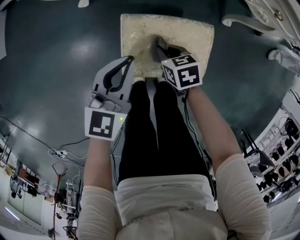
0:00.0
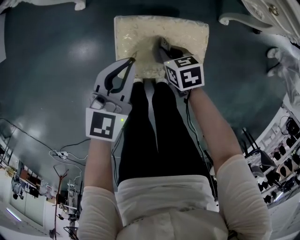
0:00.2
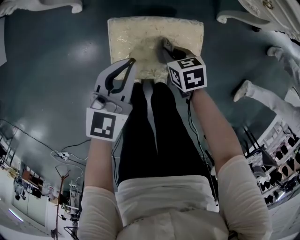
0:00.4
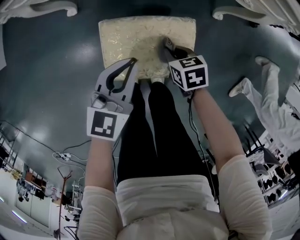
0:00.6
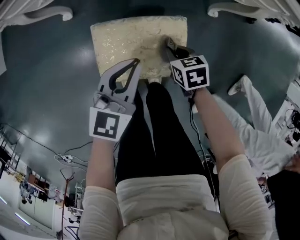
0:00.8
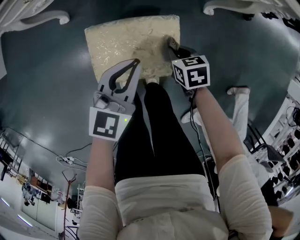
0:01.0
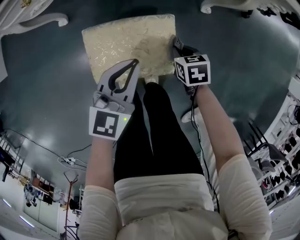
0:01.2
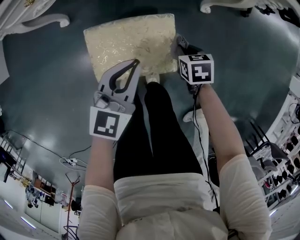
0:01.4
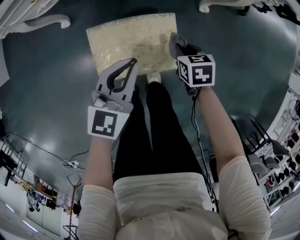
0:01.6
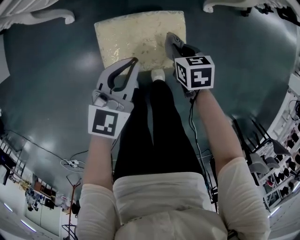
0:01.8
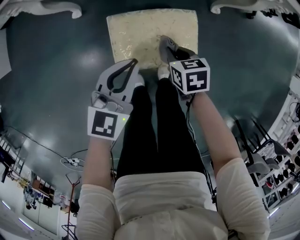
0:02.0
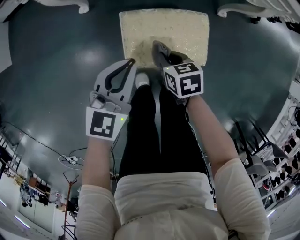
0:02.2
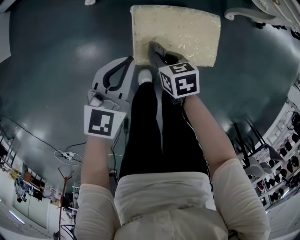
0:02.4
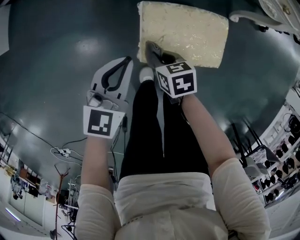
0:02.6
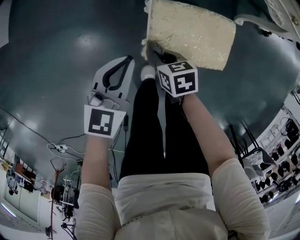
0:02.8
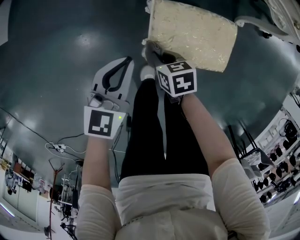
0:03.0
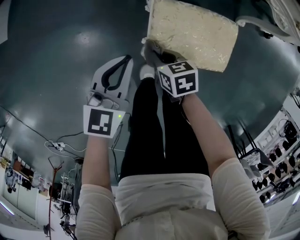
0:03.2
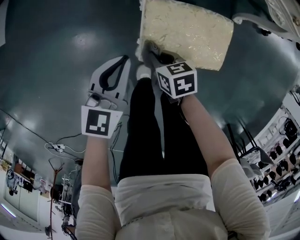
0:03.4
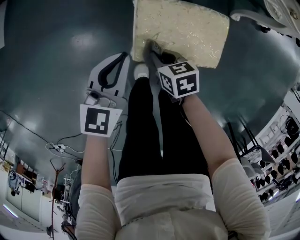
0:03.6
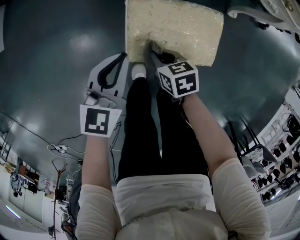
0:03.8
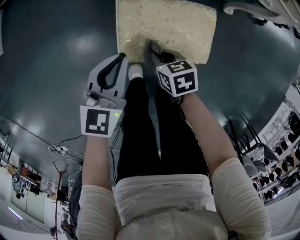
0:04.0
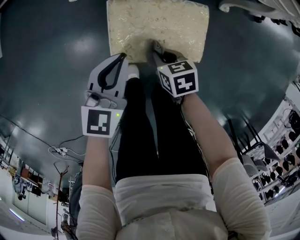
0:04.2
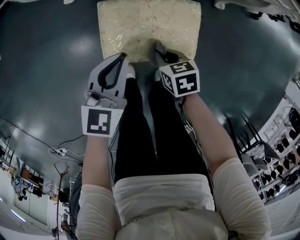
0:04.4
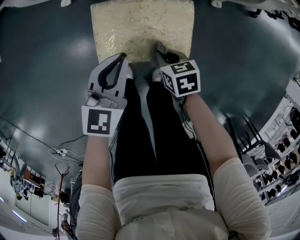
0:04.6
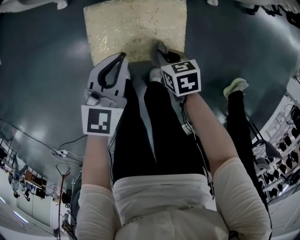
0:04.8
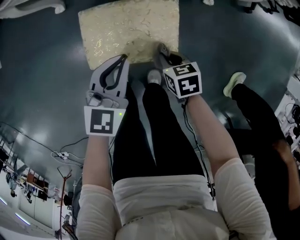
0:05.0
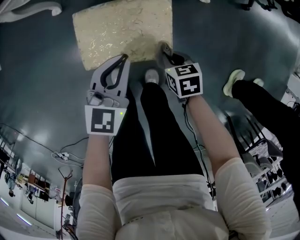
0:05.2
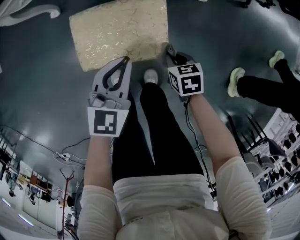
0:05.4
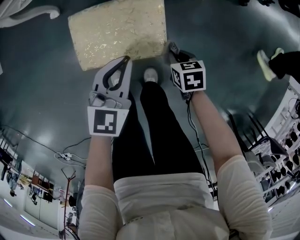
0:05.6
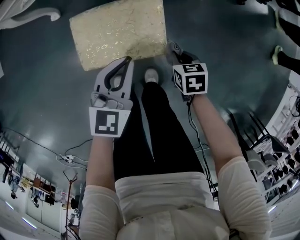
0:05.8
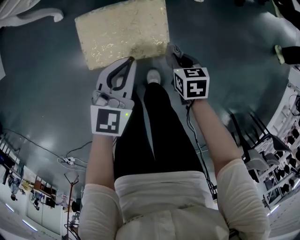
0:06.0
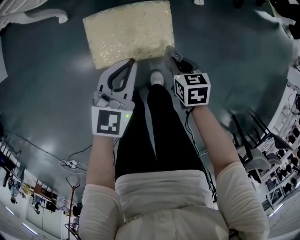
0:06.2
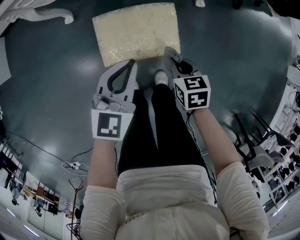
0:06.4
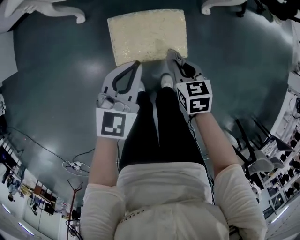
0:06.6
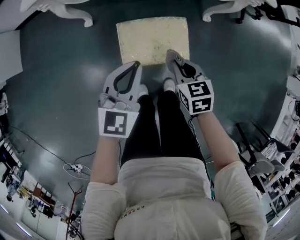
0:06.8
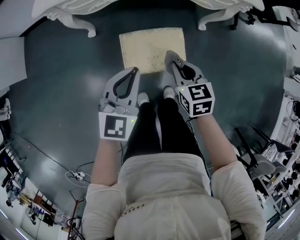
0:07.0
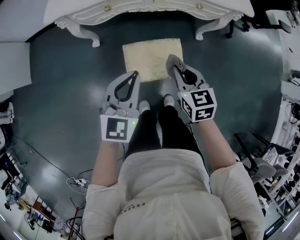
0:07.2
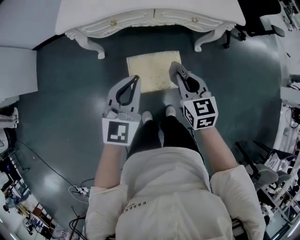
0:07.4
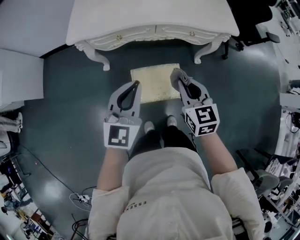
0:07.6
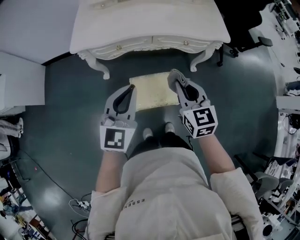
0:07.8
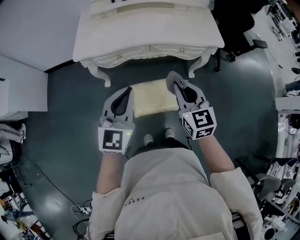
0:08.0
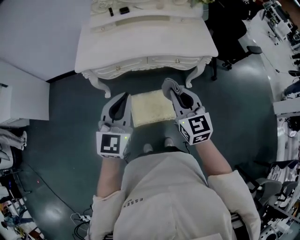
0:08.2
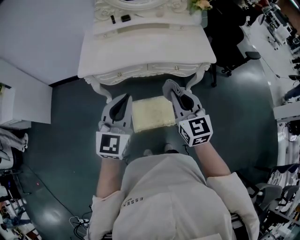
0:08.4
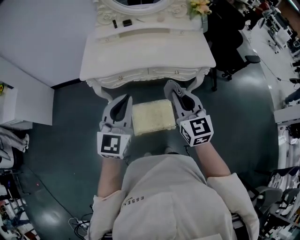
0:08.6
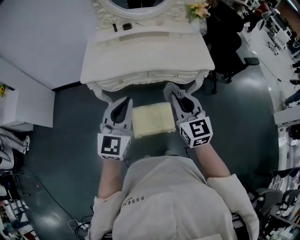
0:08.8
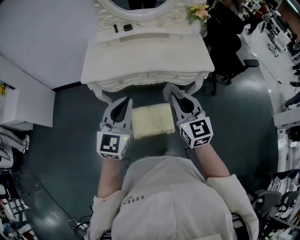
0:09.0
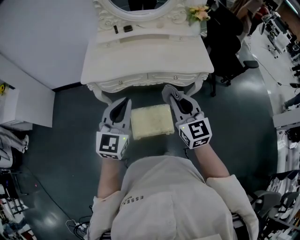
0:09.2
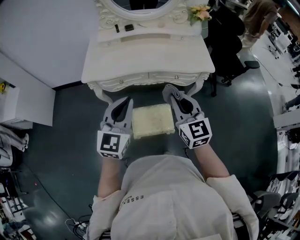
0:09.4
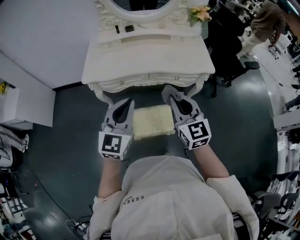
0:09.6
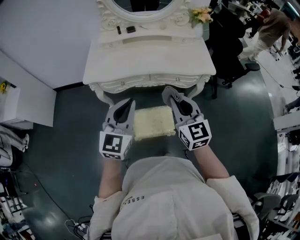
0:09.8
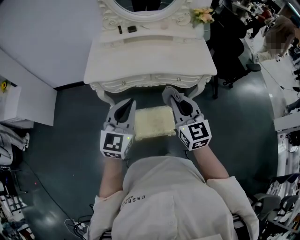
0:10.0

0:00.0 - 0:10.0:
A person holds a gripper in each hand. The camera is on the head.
0:00.0 - 0:01.4: Both grippers travel together to the right, about 20 cm.
0:01.4 - 0:02.8: Both grippers travel together to the left, approximately 30 cm.
0:02.8 - 0:04.2: Both grippers move to the right, approximately 10 cm.
0:04.2 - 0:05.8: The two grippers go roughly 20 cm to the right.
0:05.8 - 0:07.2: Both grippers travel together upward and to the left, about 30 cm. The right gripper changes its angle by about 30 degrees.
0:07.2 - 0:08.6: Both grippers move upward, about 30 cm. The right gripper turns by some 30 degrees.
0:08.6 - 0:10.0: There are only small adjustments of the grippers.

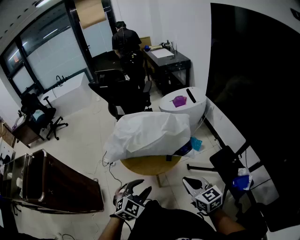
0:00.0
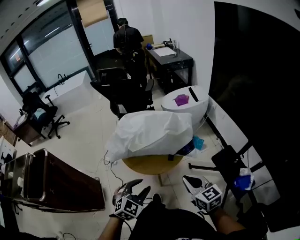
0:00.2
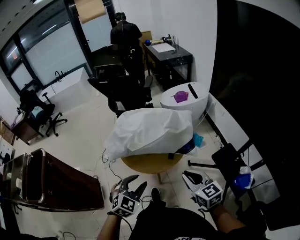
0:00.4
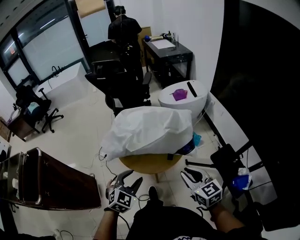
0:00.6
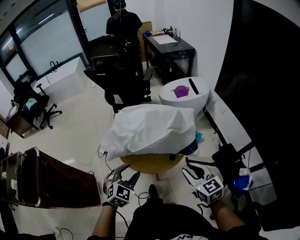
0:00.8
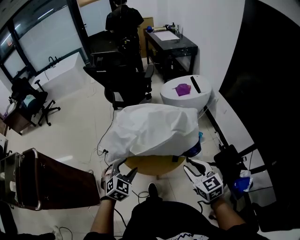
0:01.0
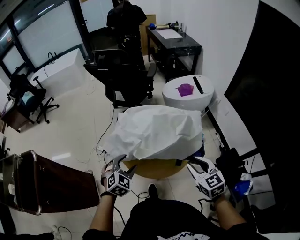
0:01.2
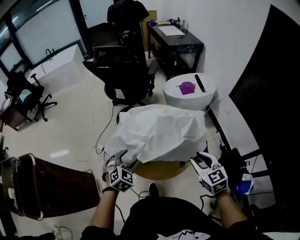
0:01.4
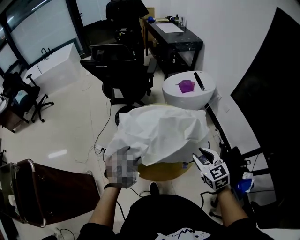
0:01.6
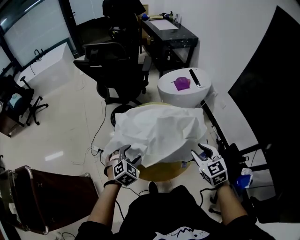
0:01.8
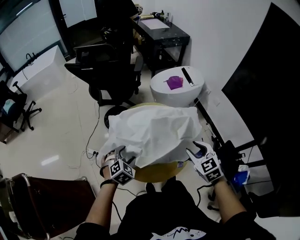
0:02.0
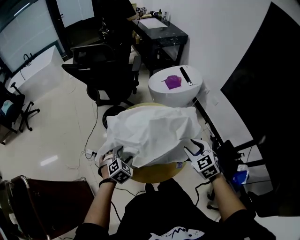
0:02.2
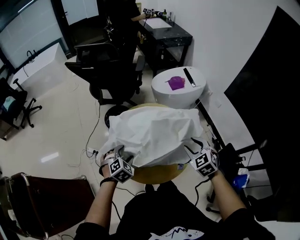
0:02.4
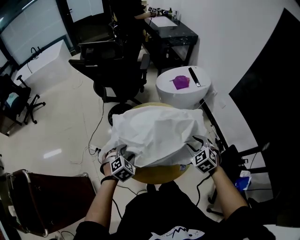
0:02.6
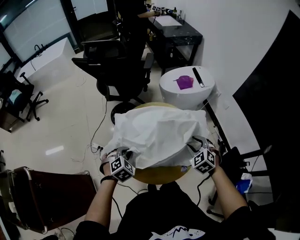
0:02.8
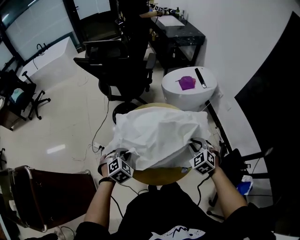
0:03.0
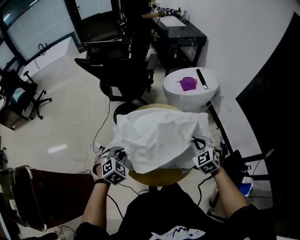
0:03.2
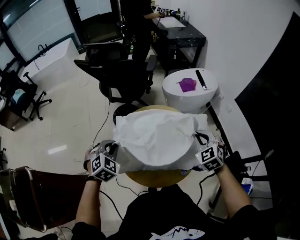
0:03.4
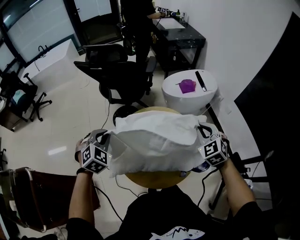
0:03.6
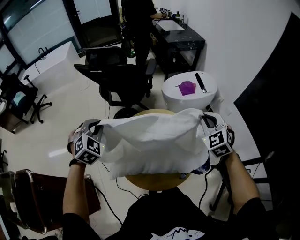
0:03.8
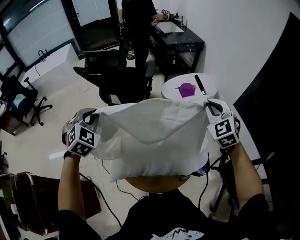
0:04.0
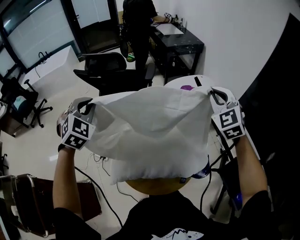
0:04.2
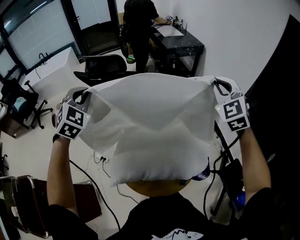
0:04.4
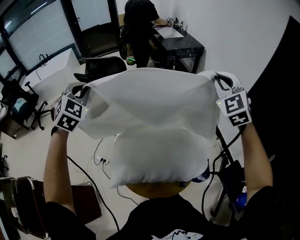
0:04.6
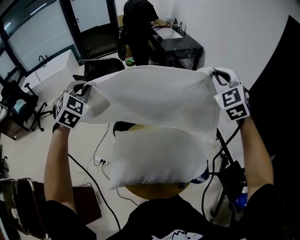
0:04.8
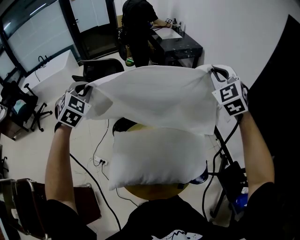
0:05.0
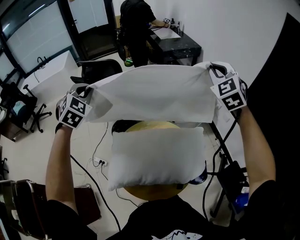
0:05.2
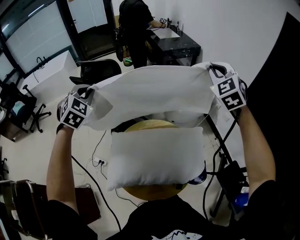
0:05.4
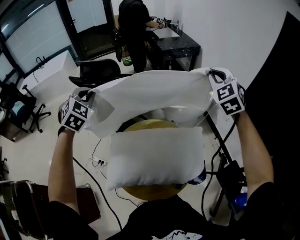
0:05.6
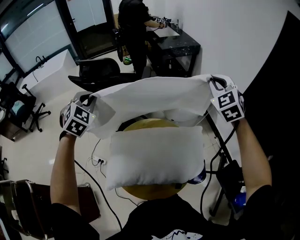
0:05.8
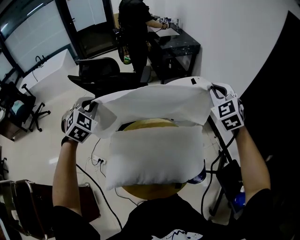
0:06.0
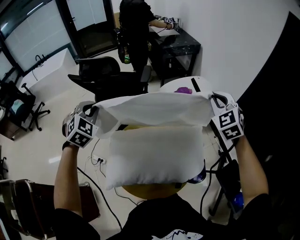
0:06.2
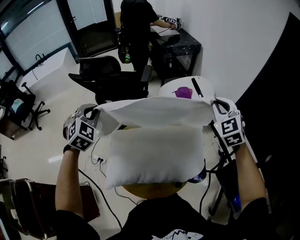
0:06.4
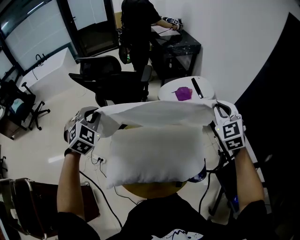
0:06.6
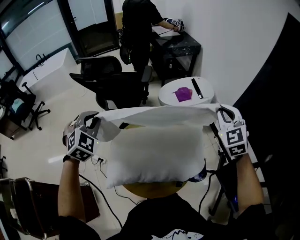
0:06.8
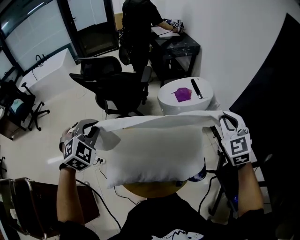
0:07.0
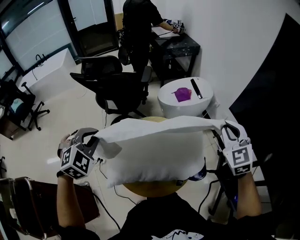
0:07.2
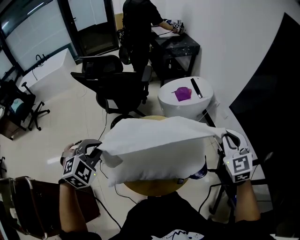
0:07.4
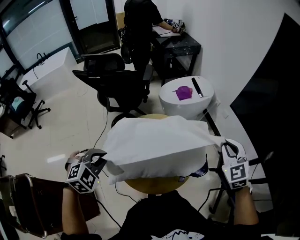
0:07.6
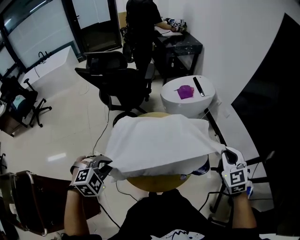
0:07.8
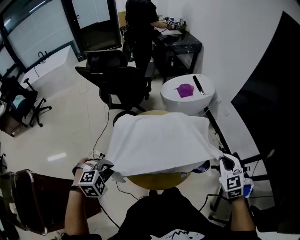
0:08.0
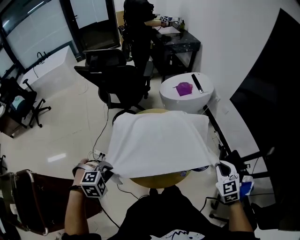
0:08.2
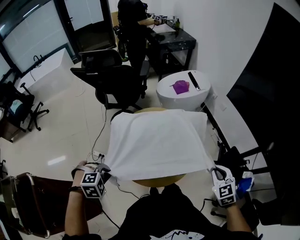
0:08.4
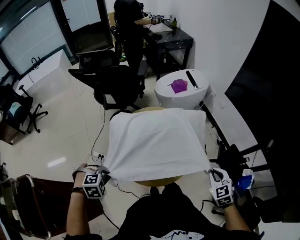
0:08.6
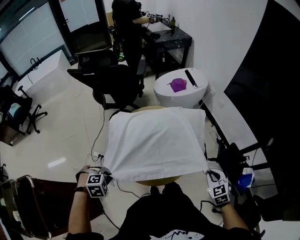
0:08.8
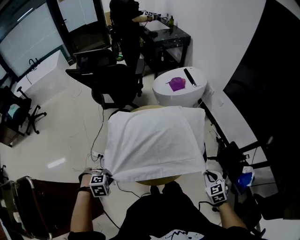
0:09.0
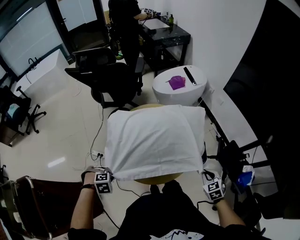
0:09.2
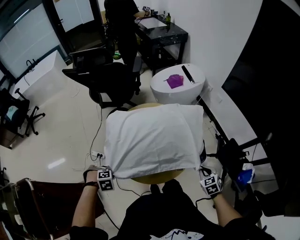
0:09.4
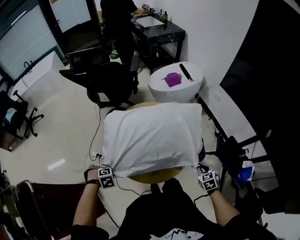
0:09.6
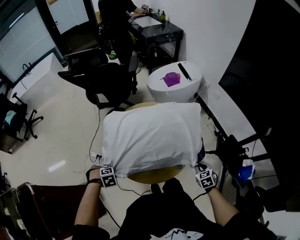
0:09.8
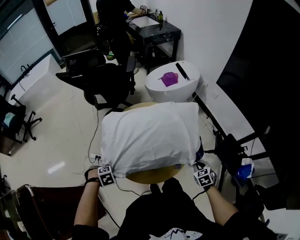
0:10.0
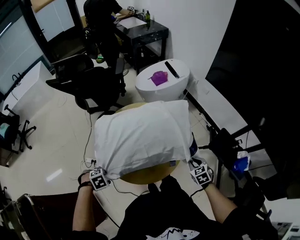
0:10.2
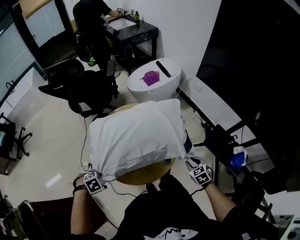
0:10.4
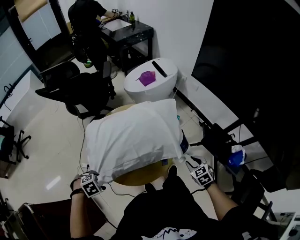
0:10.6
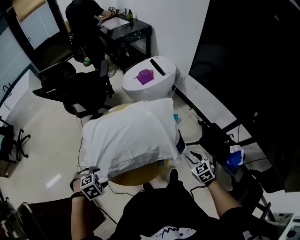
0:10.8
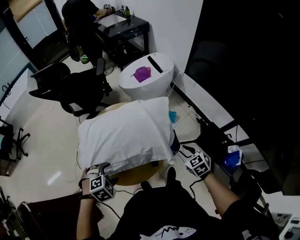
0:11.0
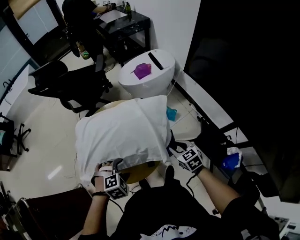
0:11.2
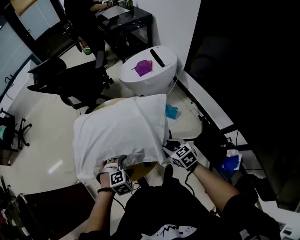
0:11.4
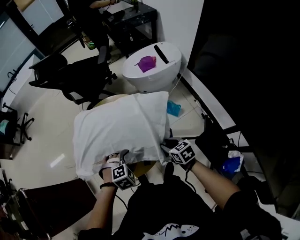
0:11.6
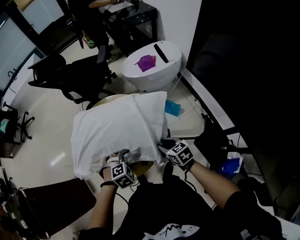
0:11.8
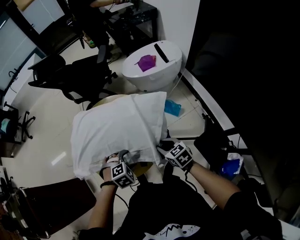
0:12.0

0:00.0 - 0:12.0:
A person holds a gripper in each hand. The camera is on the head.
0:00.0 - 0:01.6: The left gripper is displaced forward and to the left by some 35 cm, while the right gripper is displaced forward by approximately 25 cm, changes its angle by roughly 20 degrees, and opens up.
0:01.6 - 0:03.0: The left gripper ends up about 5 cm from where it was, and closes; the right gripper moves forward and downward, some 15 cm, and turns by some 30 degrees.
0:03.0 - 0:04.4: Both grippers move upward and forward, approximately 40 cm. The left gripper tilts its fingers roughly 30 degrees upward; the right gripper tilts its fingers roughly 30 degrees upward.
0:04.4 - 0:06.0: The two grippers go some 5 cm downward.
0:06.0 - 0:07.6: The left gripper is displaced backward and downward by approximately 25 cm, and changes its angle by about 30 degrees. Meanwhile the right gripper heads backward, covering about 25 cm.
0:07.6 - 0:09.0: The two grippers go about 20 cm downward. The right gripper rotates some 30 degrees. The left gripper tips its fingers downward by roughly 30 degrees.
0:09.0 - 0:10.4: The right gripper moves downward, roughly 10 cm, and opens its fingers. Meanwhile the left gripper opens its fingers.
0:10.4 - 0:12.0: The left gripper reaches approximately 10 cm upward, then returns, and turns by some 20 degrees. Meanwhile the right gripper changes place by roughly 10 cm, and rotates approximately 30 degrees.

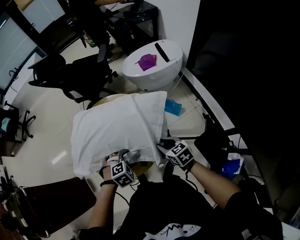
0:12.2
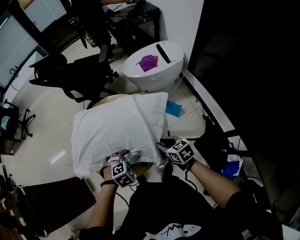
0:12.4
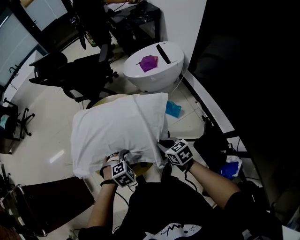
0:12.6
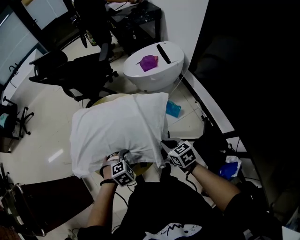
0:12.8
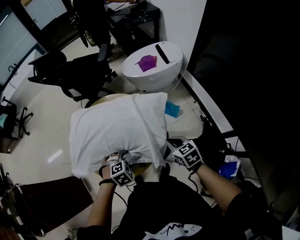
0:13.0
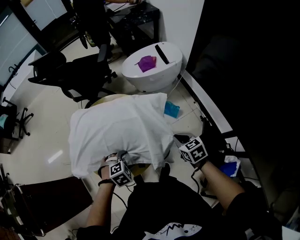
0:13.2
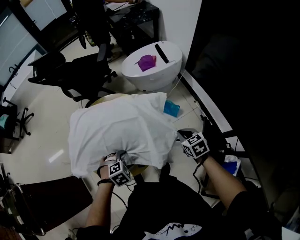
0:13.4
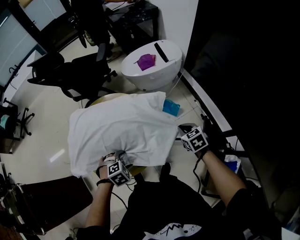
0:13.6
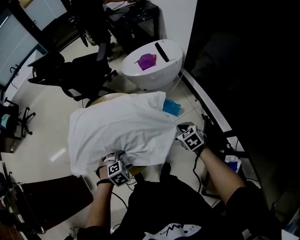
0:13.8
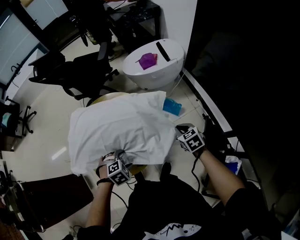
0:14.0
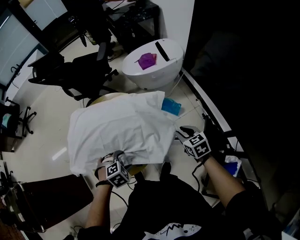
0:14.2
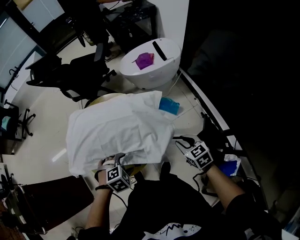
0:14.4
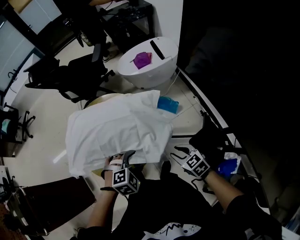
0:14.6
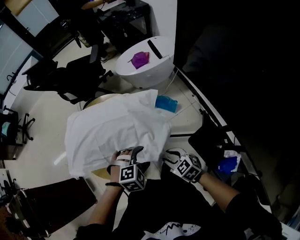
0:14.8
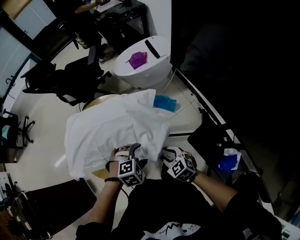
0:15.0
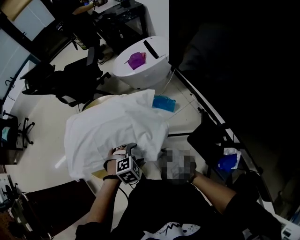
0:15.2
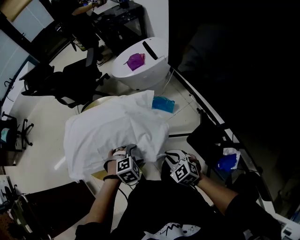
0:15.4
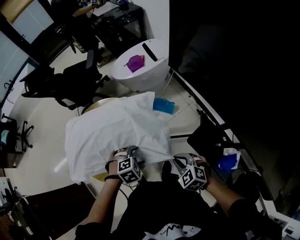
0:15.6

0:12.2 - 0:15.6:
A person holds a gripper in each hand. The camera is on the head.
0:12.2 - 0:13.8: The right gripper is displaced to the right and forward by some 15 cm, turns by approximately 20 degrees, and closes up.
0:13.8 - 0:15.6: The left gripper changes place by roughly 10 cm; the right gripper changes place by roughly 20 cm, and opens, then closes once more.
